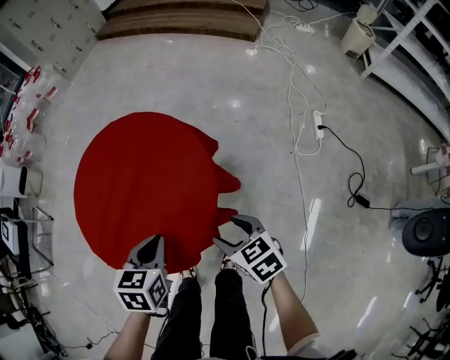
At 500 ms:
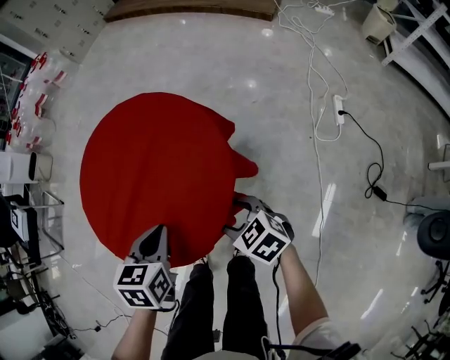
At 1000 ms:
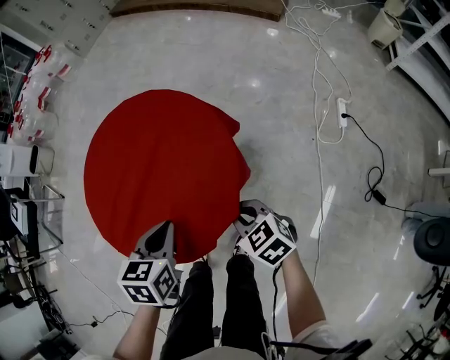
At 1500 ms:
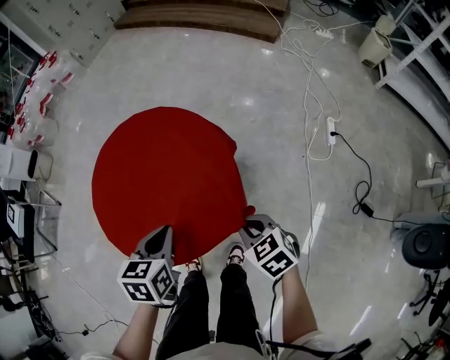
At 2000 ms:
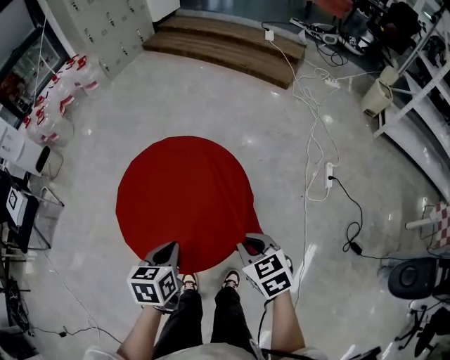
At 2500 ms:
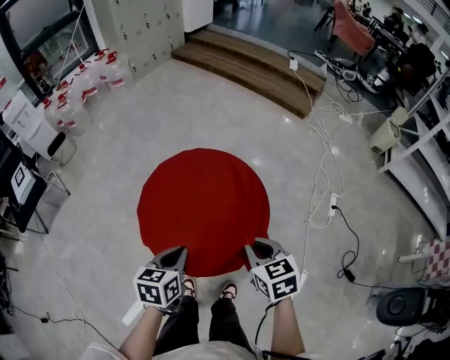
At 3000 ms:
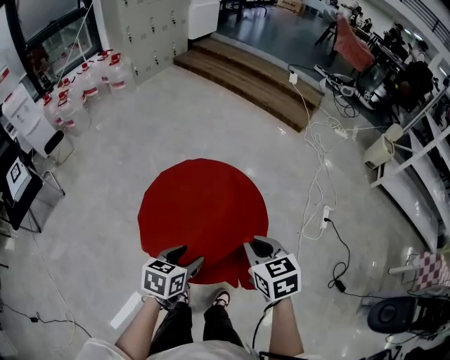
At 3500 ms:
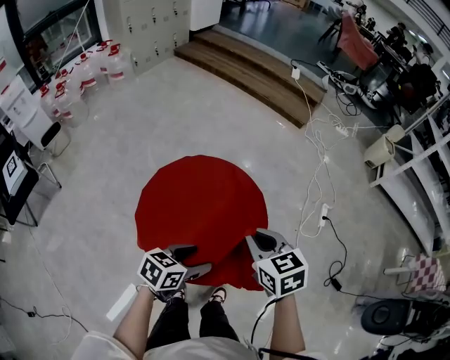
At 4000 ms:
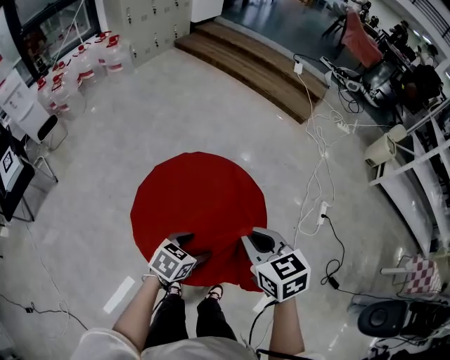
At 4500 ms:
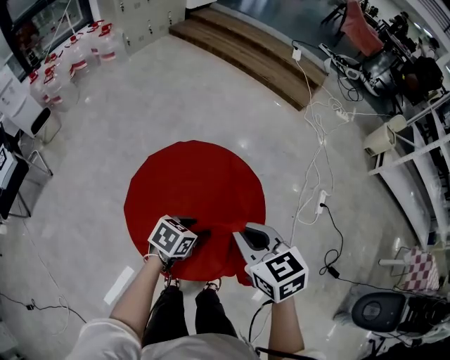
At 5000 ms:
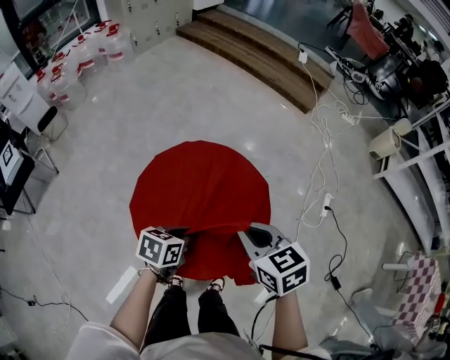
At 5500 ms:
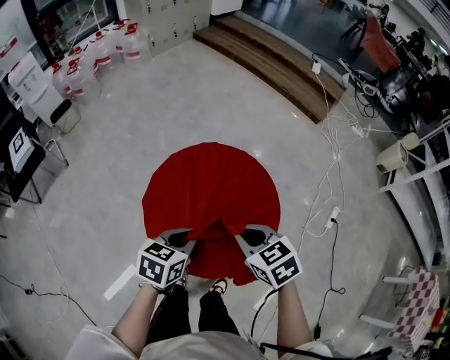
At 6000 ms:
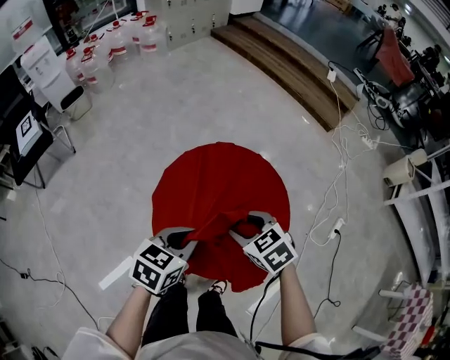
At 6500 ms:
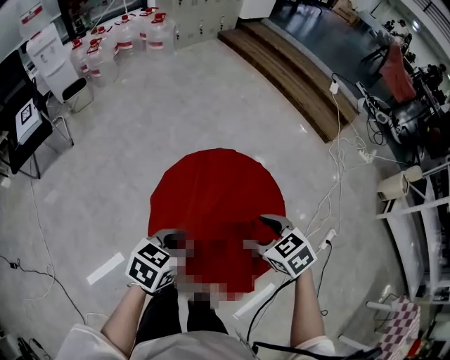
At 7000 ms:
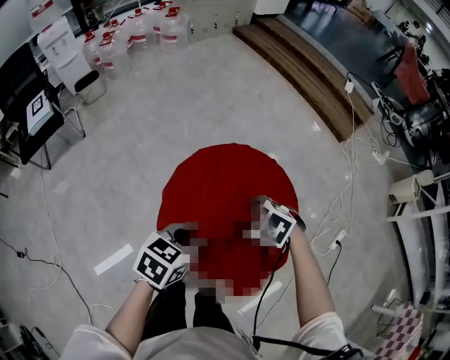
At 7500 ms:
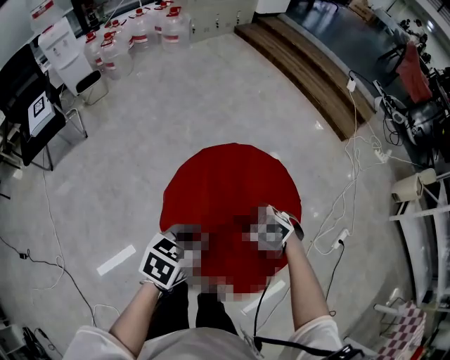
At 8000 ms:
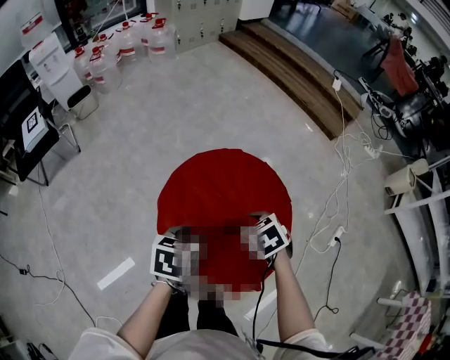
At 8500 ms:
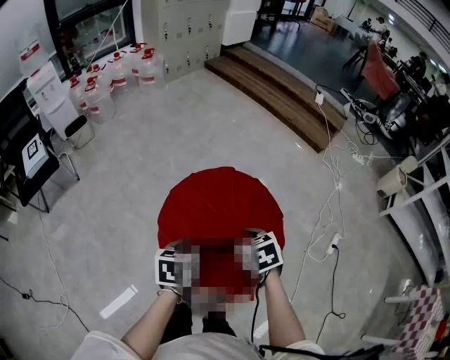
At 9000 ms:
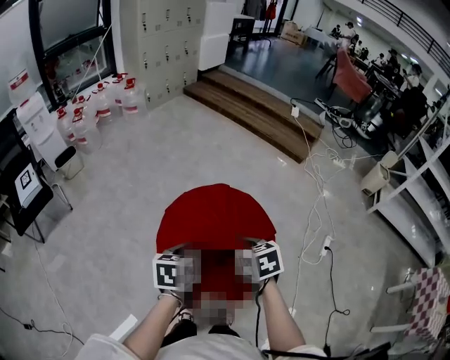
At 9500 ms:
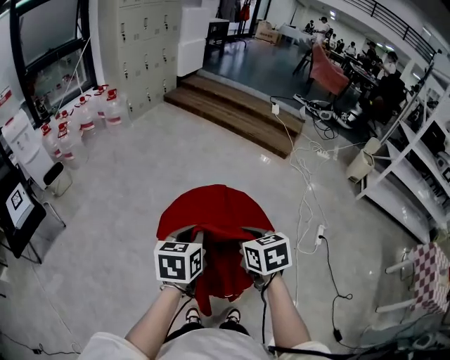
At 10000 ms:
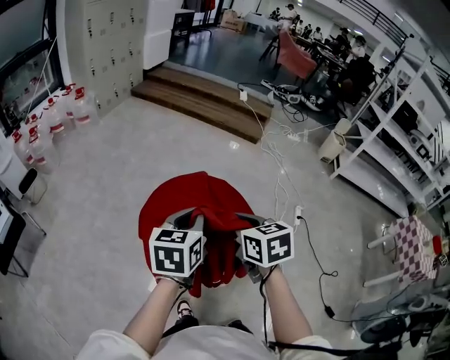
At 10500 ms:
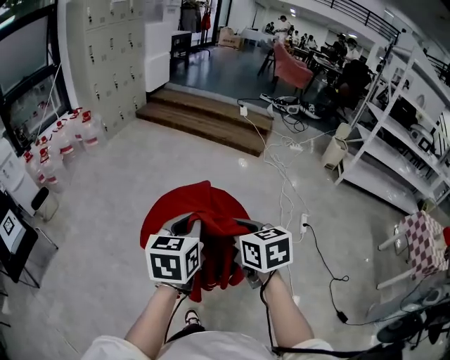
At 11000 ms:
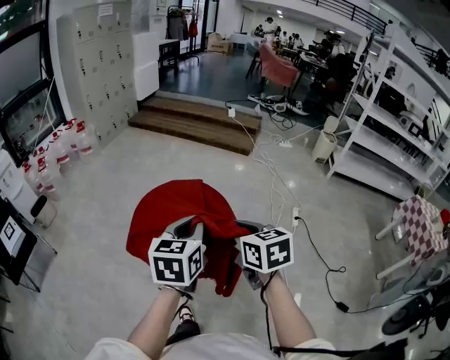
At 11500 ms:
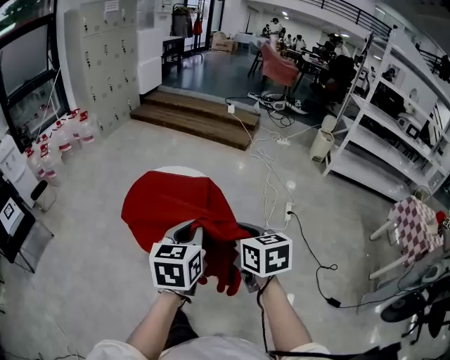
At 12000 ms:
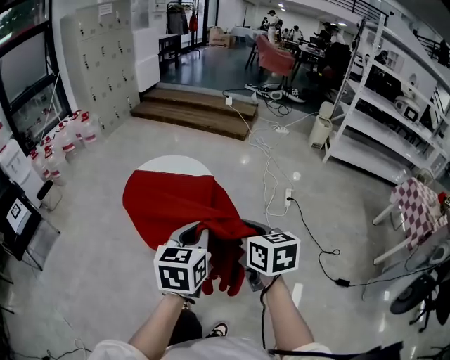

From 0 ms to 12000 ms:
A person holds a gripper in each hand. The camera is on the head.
From 0 ms to 2000 ms: The left gripper heads upward, covering approximately 5 cm, while the right gripper travels upward by about 10 cm, and closes up.
From 2000 ms to 4000 ms: The left gripper moves about 5 cm, rotates about 30 degrees, and opens up. The right gripper travels upward, to the left and forward by approximately 15 cm.
From 4000 ms to 6000 ms: The left gripper heads upward, covering roughly 10 cm, and closes, while the right gripper travels downward by about 10 cm, changes its angle by some 30 degrees, and opens.
From 6000 ms to 8000 ms: The left gripper rotates roughly 20 degrees, while the right gripper closes.
From 8000 ms to 10000 ms: The grippers both shift upward by about 20 cm. The left gripper swivels approximately 30 degrees. Meanwhile the right gripper rotates roughly 50 degrees.
From 10000 ms to 12000 ms: The grippers both shift backward and to the right by about 35 cm.

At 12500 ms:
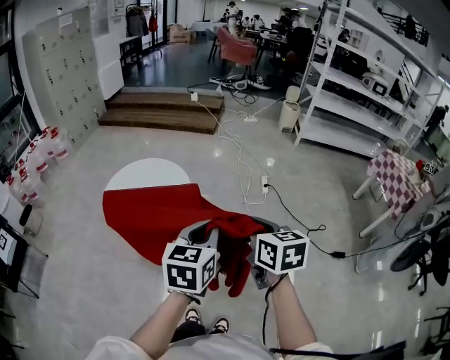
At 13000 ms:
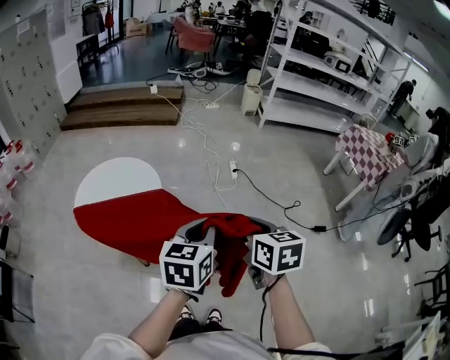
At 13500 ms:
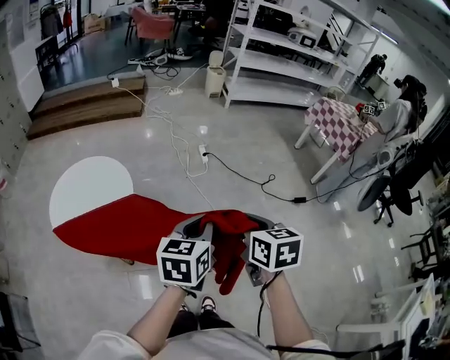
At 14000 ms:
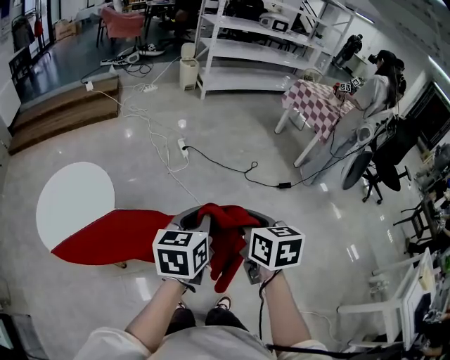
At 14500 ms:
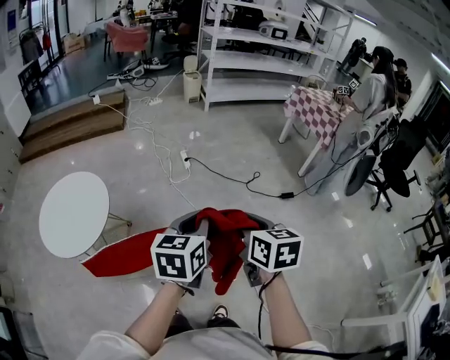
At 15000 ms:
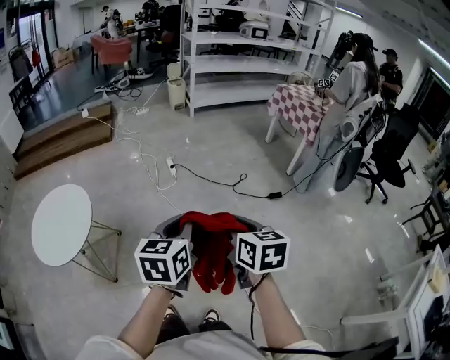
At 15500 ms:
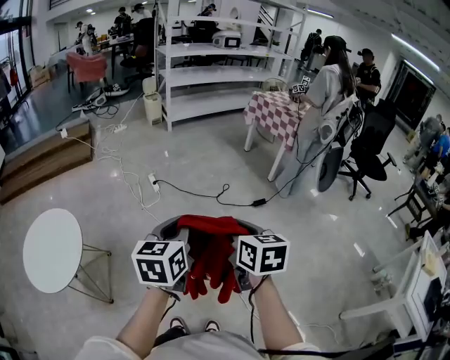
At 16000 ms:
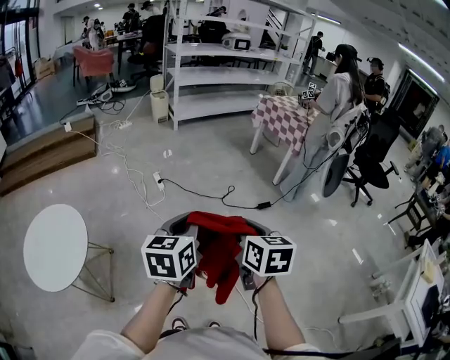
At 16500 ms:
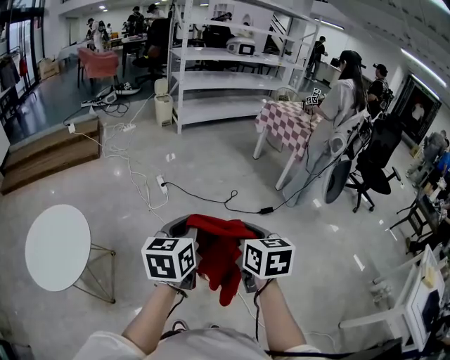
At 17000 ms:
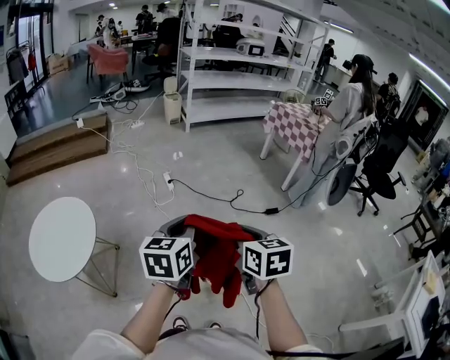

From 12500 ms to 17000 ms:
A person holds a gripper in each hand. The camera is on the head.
From 12500 ms to 14500 ms: The left gripper moves roughly 20 cm, and changes its angle by approximately 30 degrees. The right gripper changes place by some 25 cm, and swivels roughly 30 degrees.

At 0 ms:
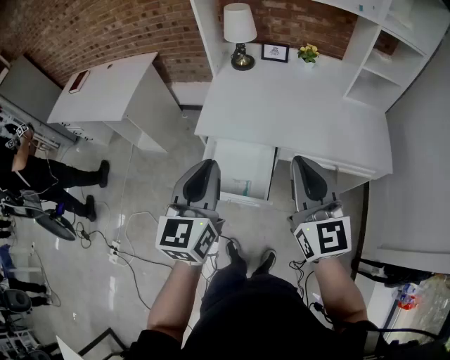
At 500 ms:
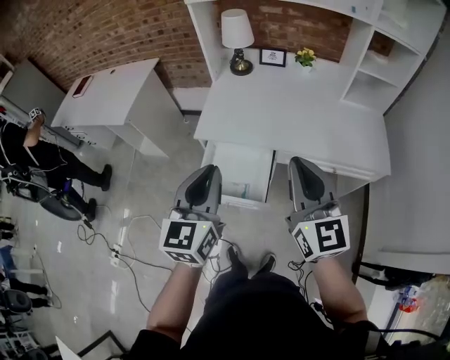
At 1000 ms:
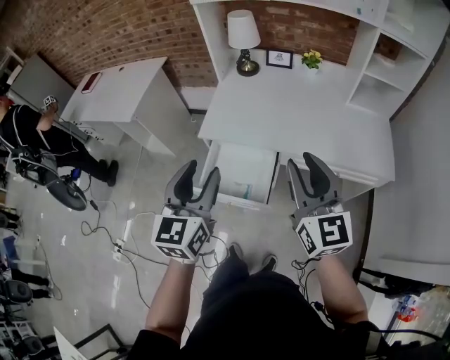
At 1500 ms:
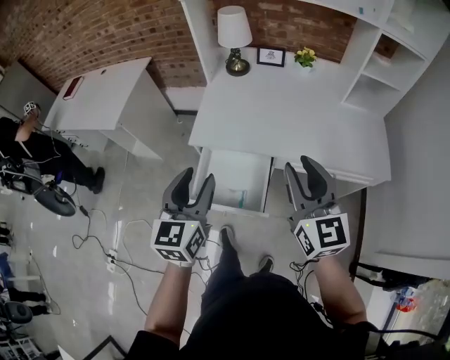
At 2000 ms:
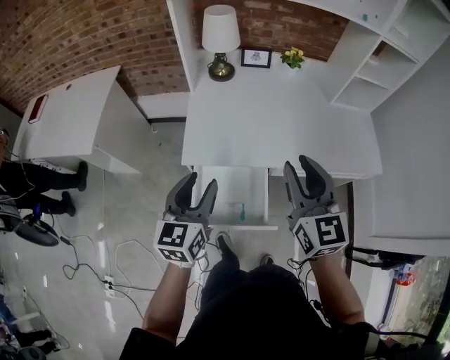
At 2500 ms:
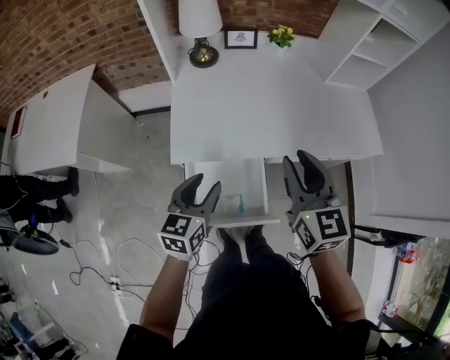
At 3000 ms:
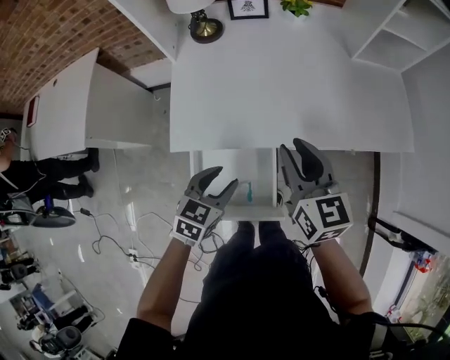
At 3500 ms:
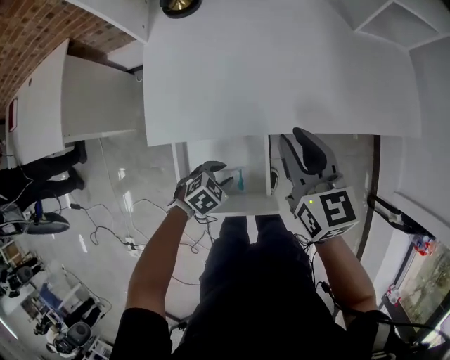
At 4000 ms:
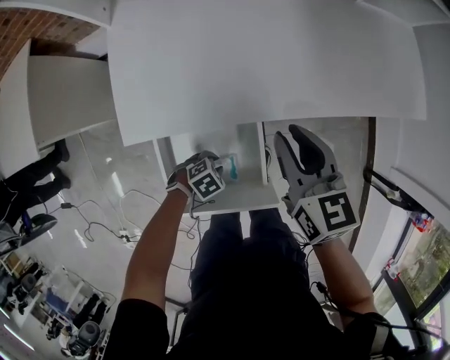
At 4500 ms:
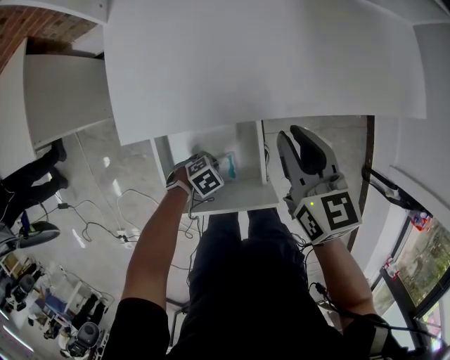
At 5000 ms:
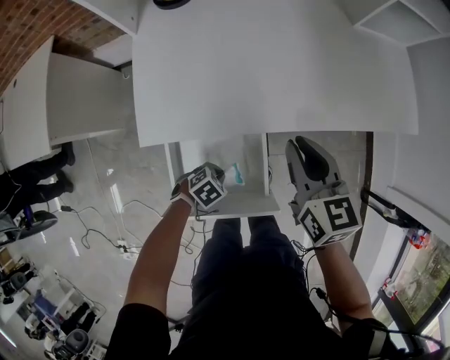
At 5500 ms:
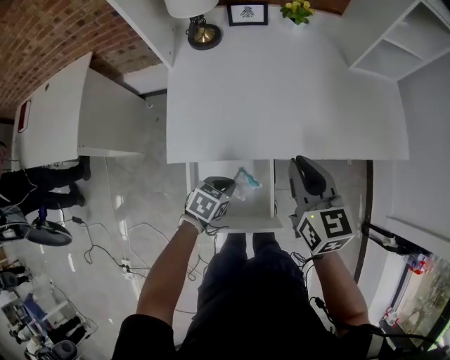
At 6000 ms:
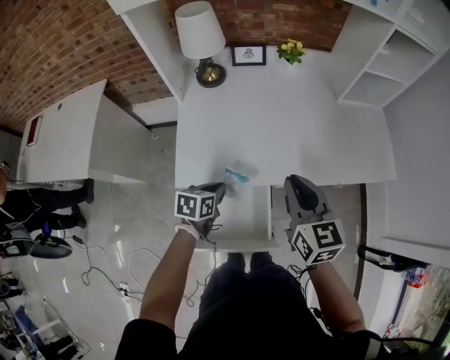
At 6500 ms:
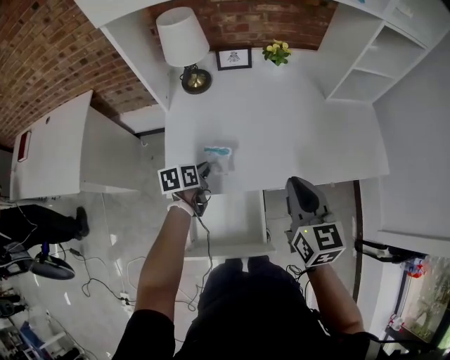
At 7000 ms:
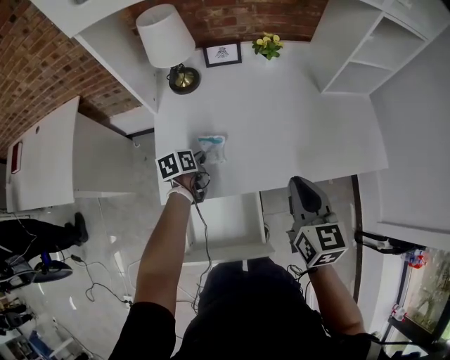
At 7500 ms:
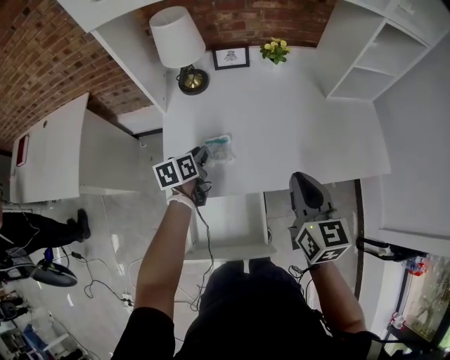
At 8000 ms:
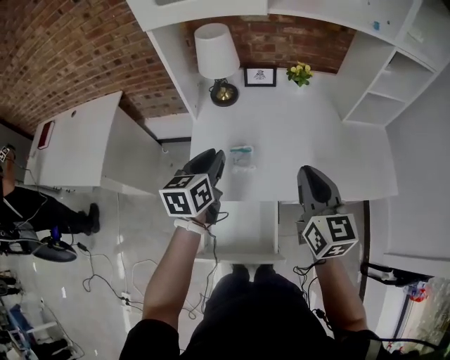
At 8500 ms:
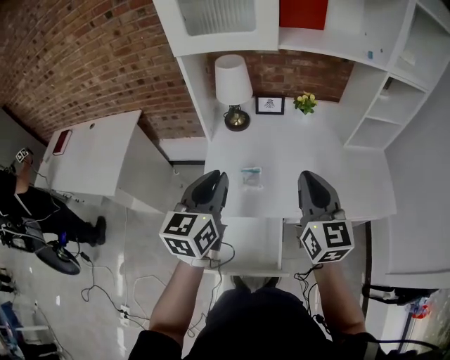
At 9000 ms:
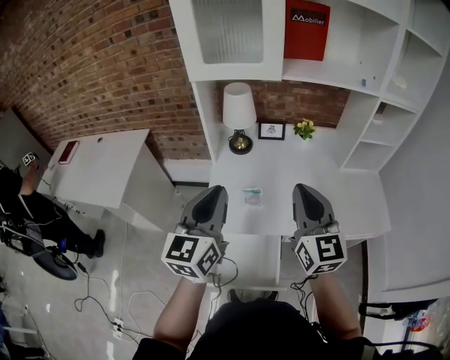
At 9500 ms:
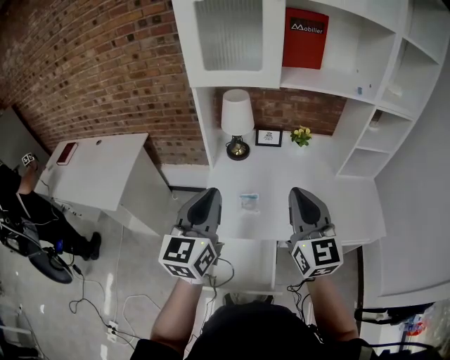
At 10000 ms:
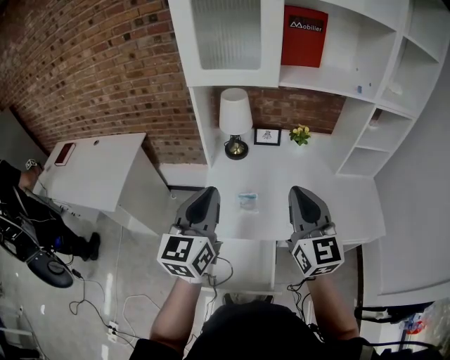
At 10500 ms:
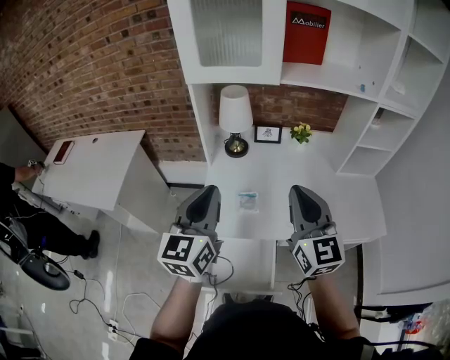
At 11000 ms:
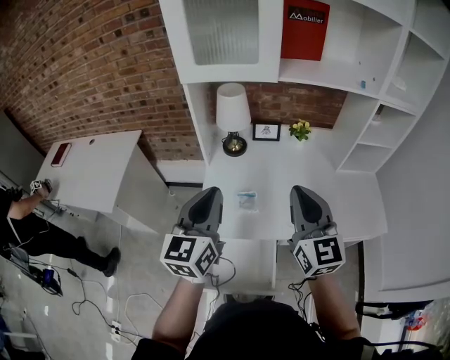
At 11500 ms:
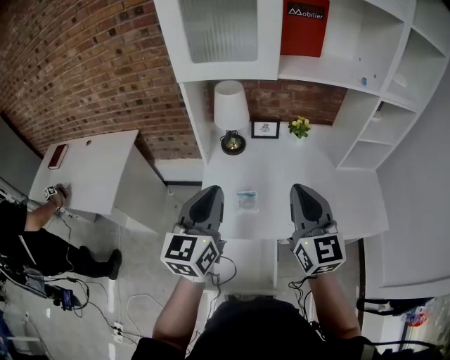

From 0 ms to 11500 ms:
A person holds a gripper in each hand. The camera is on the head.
From 0 ms to 2000 ms: The right gripper travels forward by approximately 15 cm, and opens up; the left gripper travels forward, downward and to the left by roughly 20 cm, and opens up.
From 2000 ms to 4000 ms: The left gripper goes roughly 50 cm downward, points its fingers approximately 60 degrees further downward, and closes up; the right gripper is displaced downward by roughly 25 cm, and turns by some 30 degrees.
From 4000 ms to 6000 ms: The left gripper is displaced upward by some 25 cm, rotates roughly 60 degrees, and closes up. The right gripper heads upward, covering about 15 cm.
From 6000 ms to 7500 ms: The right gripper changes place by about 5 cm; the left gripper moves forward, about 15 cm, and changes its angle by roughly 20 degrees.
From 7500 ms to 9500 ms: The right gripper is displaced upward and to the left by approximately 20 cm, and changes its angle by about 30 degrees; the left gripper moves upward and backward, about 40 cm, and angles its fingers upward, by some 40 degrees.
From 9500 ms to 11500 ms: The left gripper moves about 5 cm.
